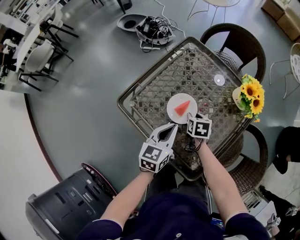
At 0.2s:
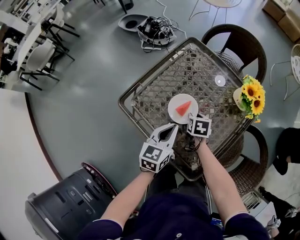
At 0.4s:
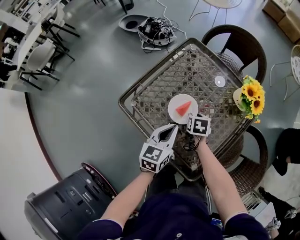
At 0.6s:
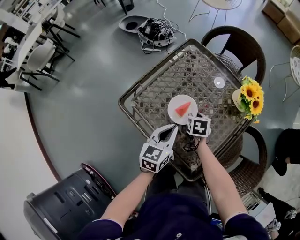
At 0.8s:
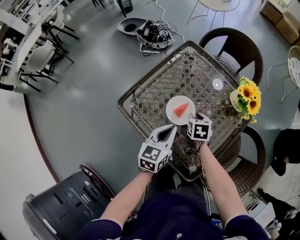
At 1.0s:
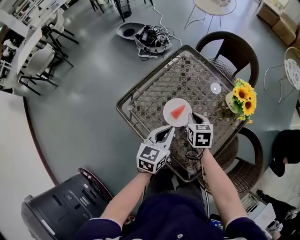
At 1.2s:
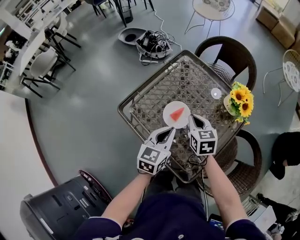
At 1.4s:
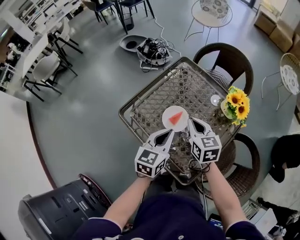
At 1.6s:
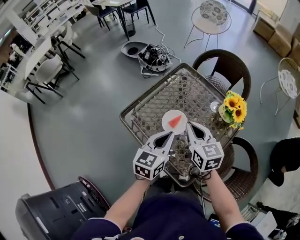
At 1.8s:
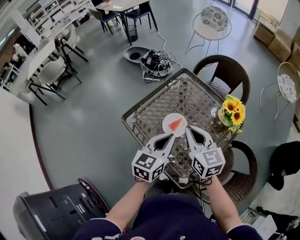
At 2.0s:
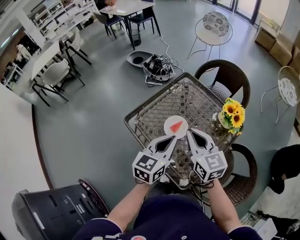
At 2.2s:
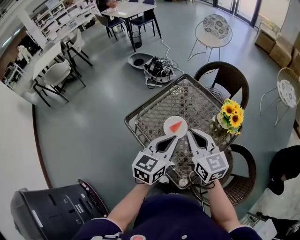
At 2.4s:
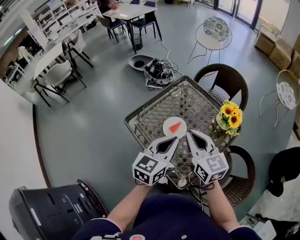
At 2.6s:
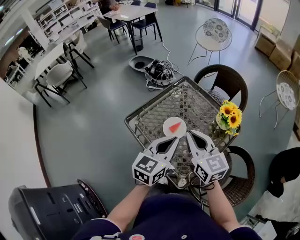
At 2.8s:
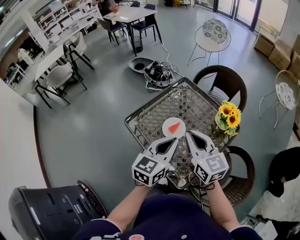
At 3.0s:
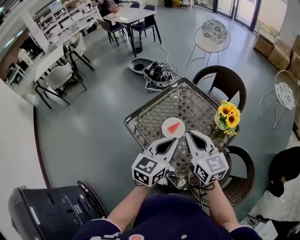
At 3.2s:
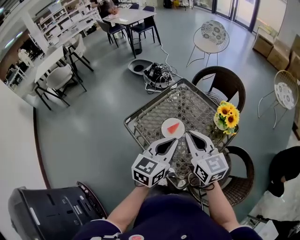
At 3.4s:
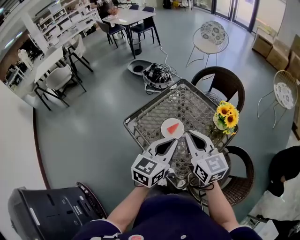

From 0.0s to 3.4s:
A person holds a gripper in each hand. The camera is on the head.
From 0.0s to 1.6s: The left gripper travels upward by roughly 10 cm, while the right gripper travels upward by approximately 25 cm, tilts its fingers some 40 degrees upward, and closes.
From 1.6s to 3.4s: The two grippers go some 10 cm upward and backward.

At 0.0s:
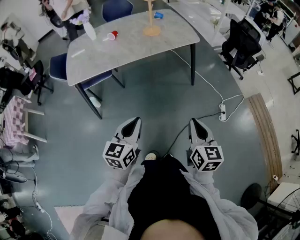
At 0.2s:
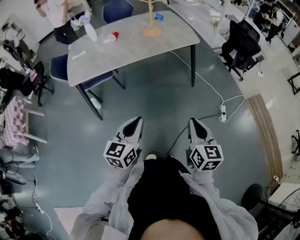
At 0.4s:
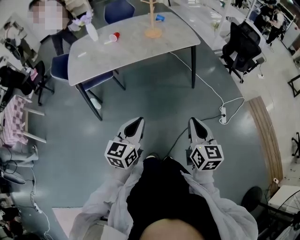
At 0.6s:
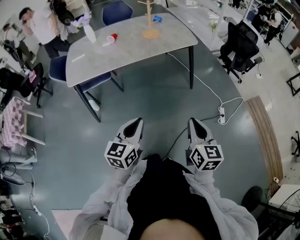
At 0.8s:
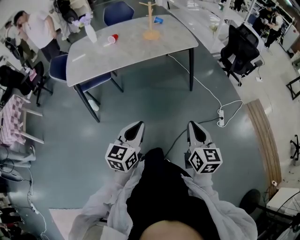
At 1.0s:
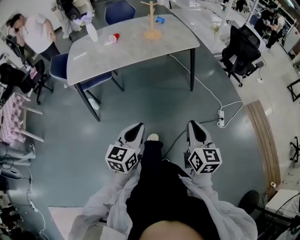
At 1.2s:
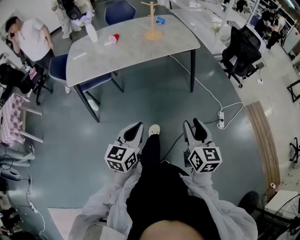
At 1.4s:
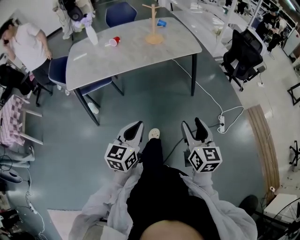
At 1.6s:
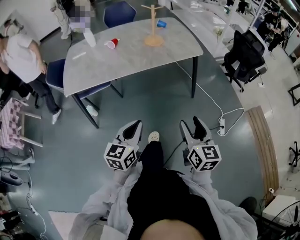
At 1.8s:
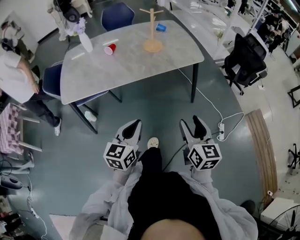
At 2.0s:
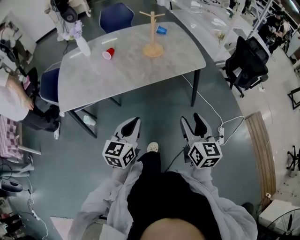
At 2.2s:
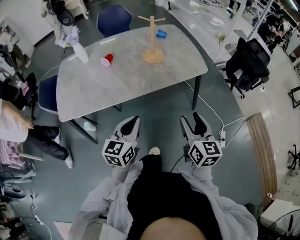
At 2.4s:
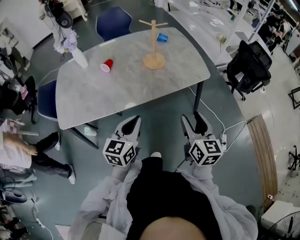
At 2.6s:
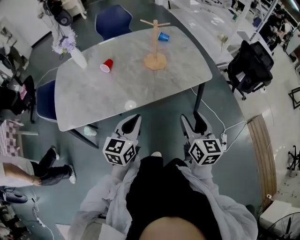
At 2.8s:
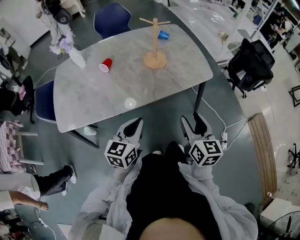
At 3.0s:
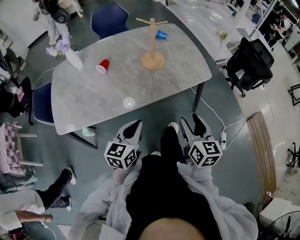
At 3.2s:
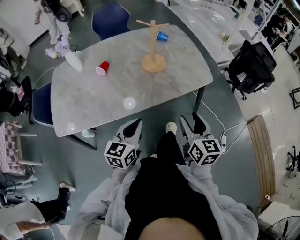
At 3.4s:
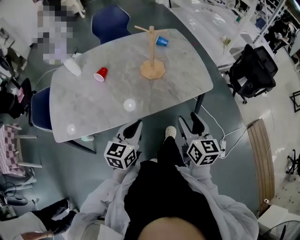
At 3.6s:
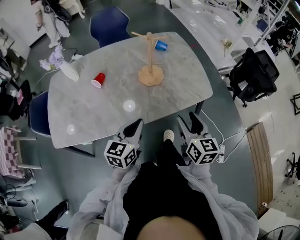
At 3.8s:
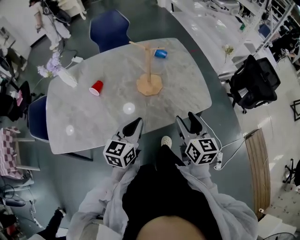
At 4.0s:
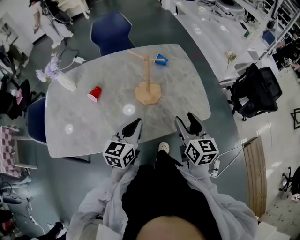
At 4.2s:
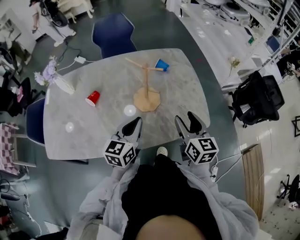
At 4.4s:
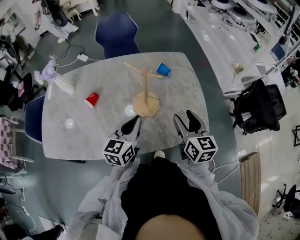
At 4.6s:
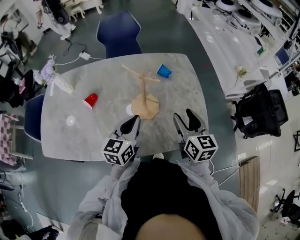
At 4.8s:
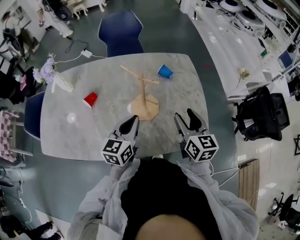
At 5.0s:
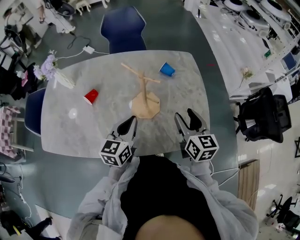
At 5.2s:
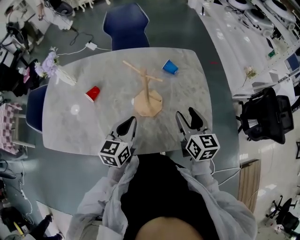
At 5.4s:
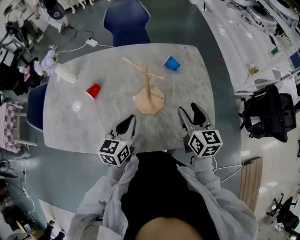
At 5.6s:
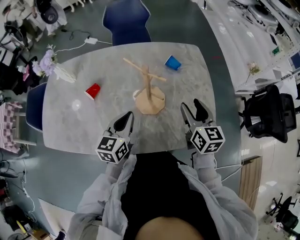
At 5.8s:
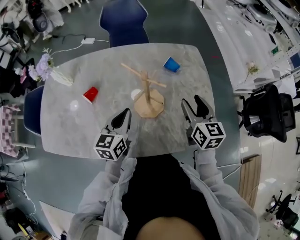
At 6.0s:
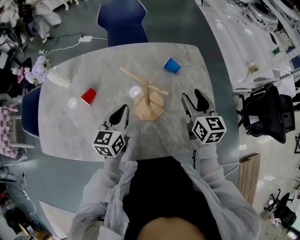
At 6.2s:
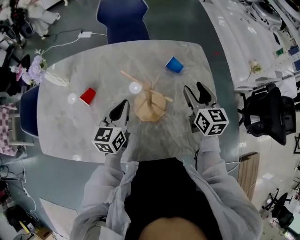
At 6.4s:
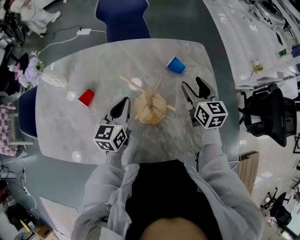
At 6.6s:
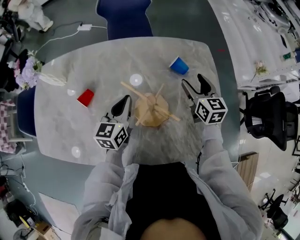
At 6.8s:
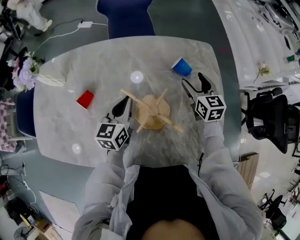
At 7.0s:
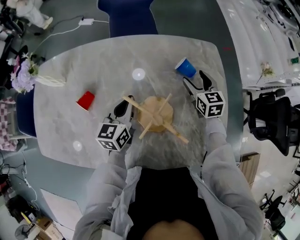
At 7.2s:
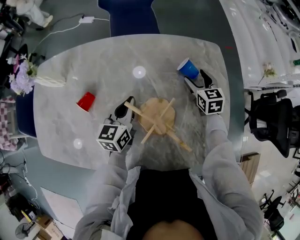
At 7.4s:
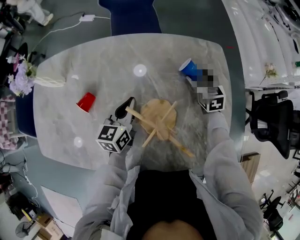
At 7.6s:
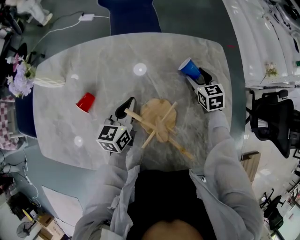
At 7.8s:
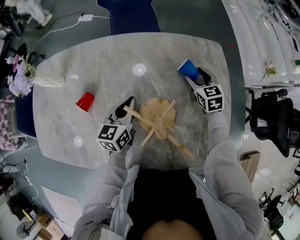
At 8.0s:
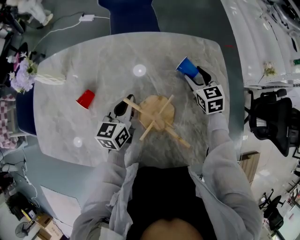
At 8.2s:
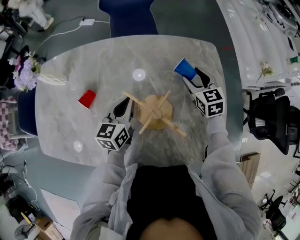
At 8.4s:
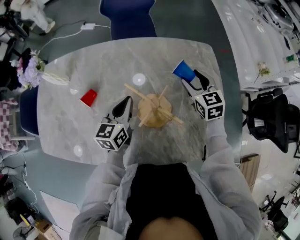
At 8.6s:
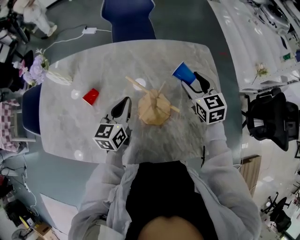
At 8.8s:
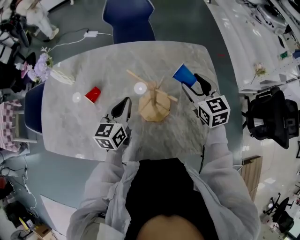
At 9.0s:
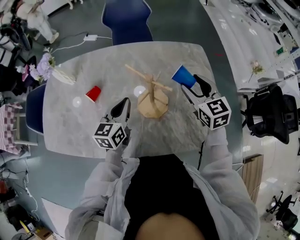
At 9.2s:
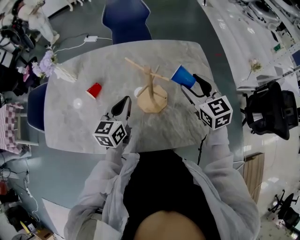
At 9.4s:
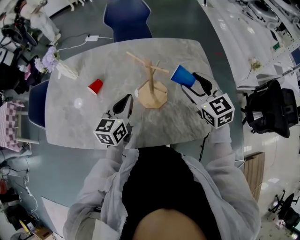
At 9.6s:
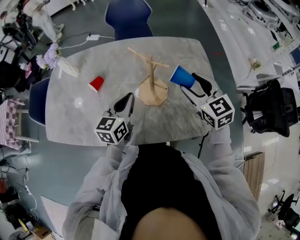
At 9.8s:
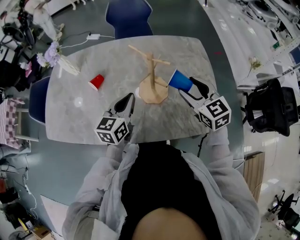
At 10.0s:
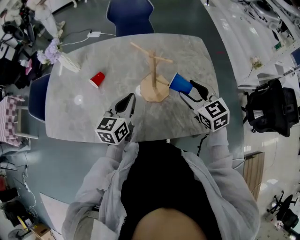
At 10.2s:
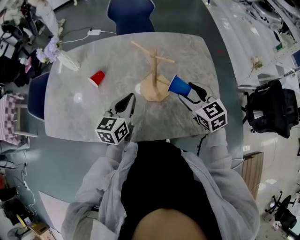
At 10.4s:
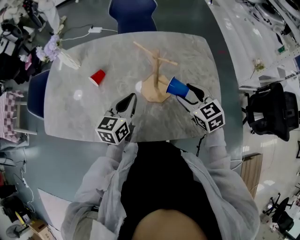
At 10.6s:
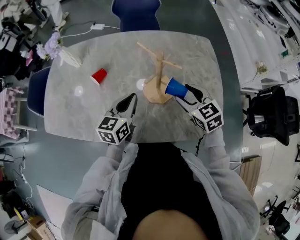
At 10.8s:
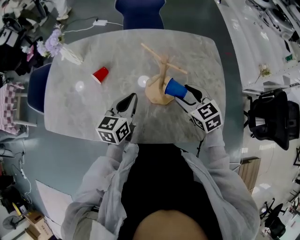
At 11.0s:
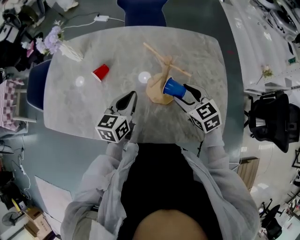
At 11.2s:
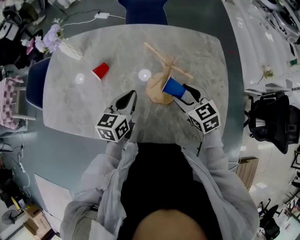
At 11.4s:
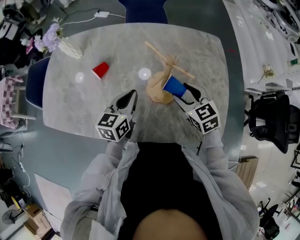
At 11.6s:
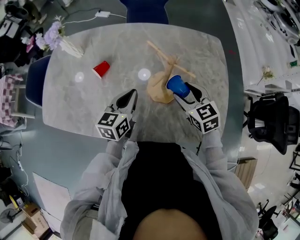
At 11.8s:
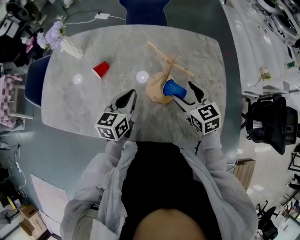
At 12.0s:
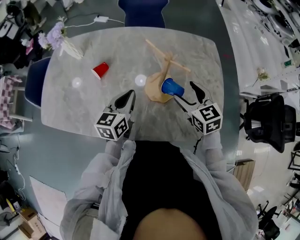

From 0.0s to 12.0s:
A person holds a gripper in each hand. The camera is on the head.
From 0.0s to 1.6s: The two grippers go approximately 10 cm forward. The right gripper opens its fingers.
From 1.6s to 3.0s: The two grippers go some 30 cm forward.
From 3.0s to 4.4s: The two grippers go about 35 cm forward.
From 4.4s to 6.0s: The left gripper goes roughly 15 cm forward, to the left and downward. Meanwhile the right gripper shifts about 15 cm forward.
From 6.0s to 7.6s: The left gripper moves forward and downward, approximately 15 cm, while the right gripper shifts about 25 cm forward and downward, and rotates some 30 degrees.
From 7.6s to 9.0s: The right gripper moves upward and backward, some 25 cm. Meanwhile the left gripper goes roughly 15 cm backward and upward.
From 9.0s to 10.4s: The right gripper travels backward and downward by approximately 10 cm. The left gripper travels backward by roughly 5 cm.

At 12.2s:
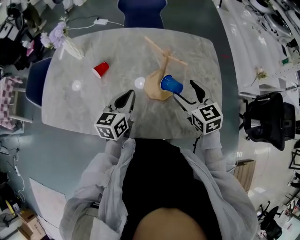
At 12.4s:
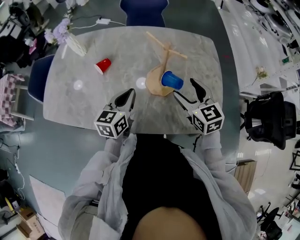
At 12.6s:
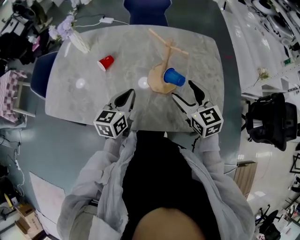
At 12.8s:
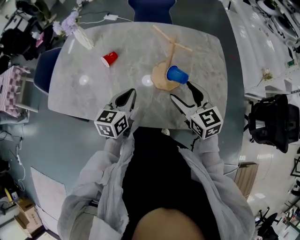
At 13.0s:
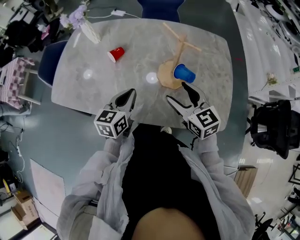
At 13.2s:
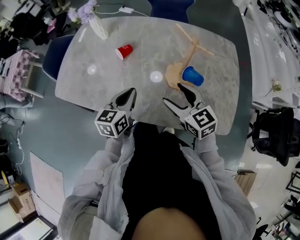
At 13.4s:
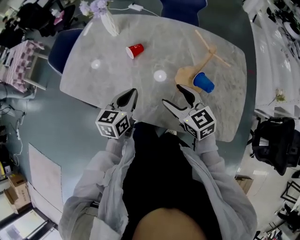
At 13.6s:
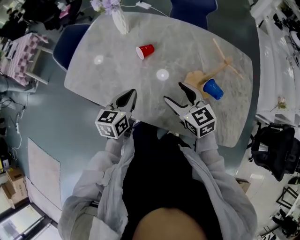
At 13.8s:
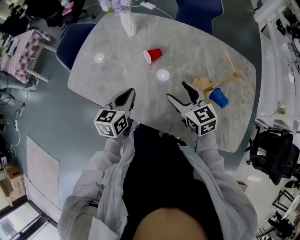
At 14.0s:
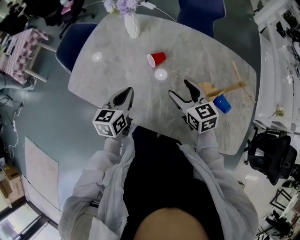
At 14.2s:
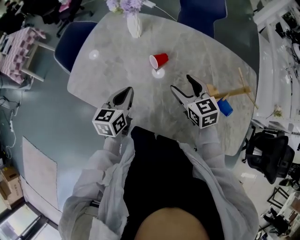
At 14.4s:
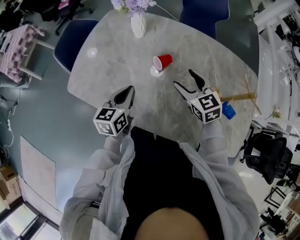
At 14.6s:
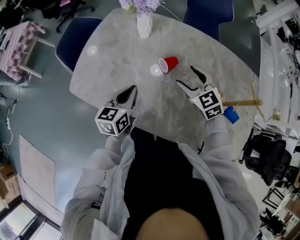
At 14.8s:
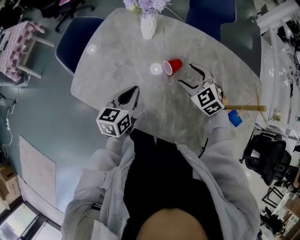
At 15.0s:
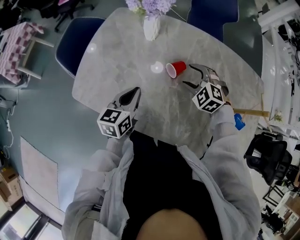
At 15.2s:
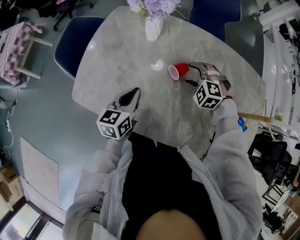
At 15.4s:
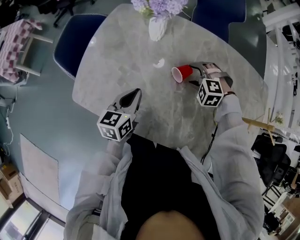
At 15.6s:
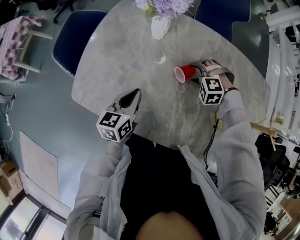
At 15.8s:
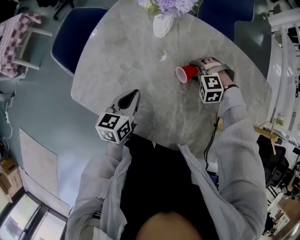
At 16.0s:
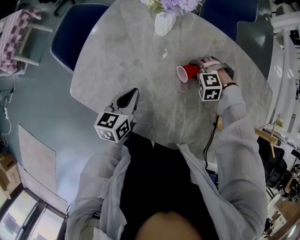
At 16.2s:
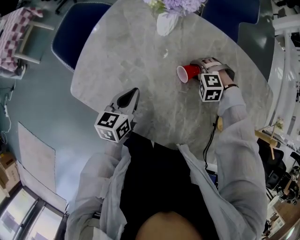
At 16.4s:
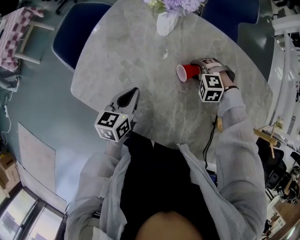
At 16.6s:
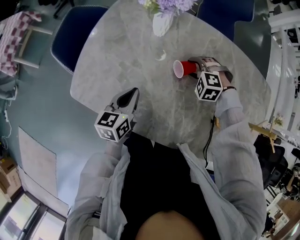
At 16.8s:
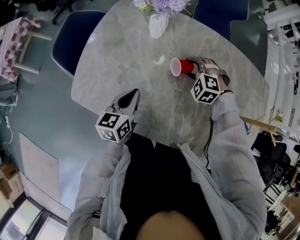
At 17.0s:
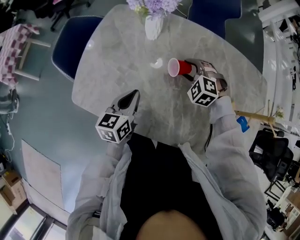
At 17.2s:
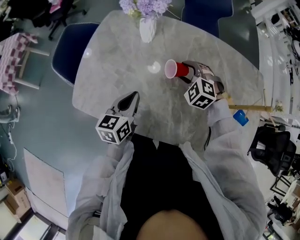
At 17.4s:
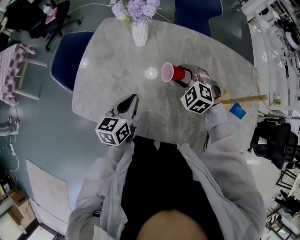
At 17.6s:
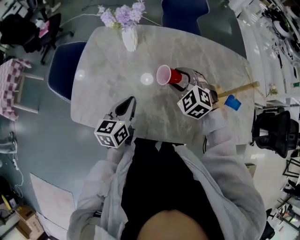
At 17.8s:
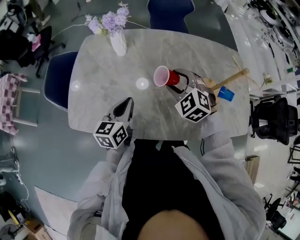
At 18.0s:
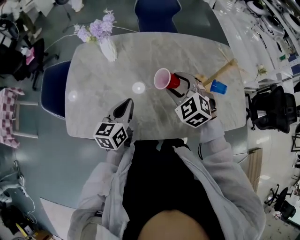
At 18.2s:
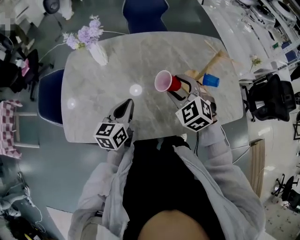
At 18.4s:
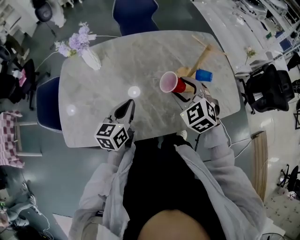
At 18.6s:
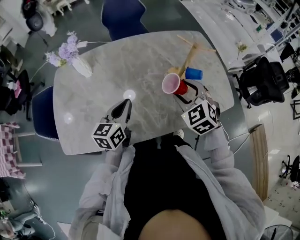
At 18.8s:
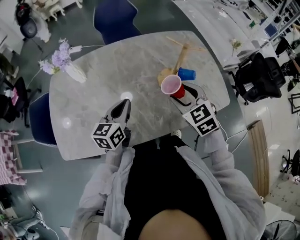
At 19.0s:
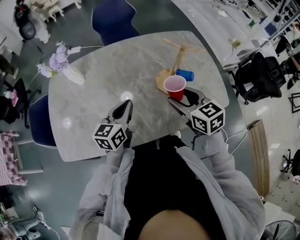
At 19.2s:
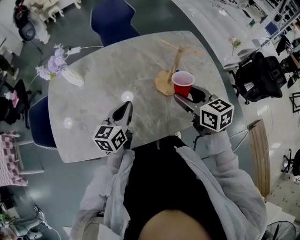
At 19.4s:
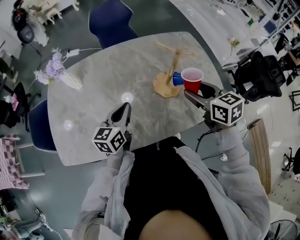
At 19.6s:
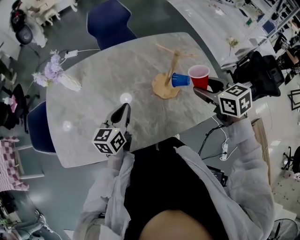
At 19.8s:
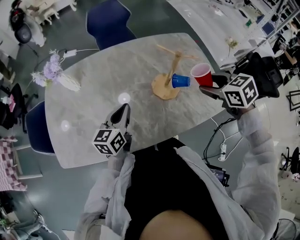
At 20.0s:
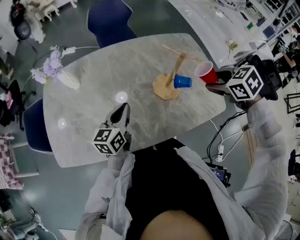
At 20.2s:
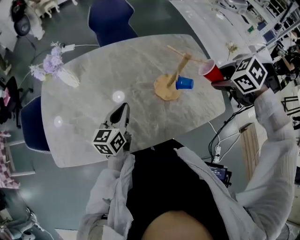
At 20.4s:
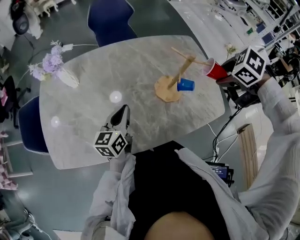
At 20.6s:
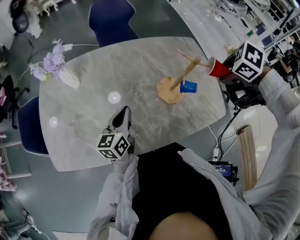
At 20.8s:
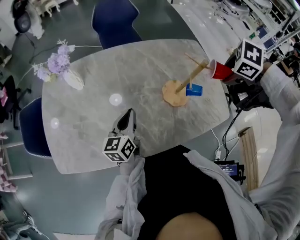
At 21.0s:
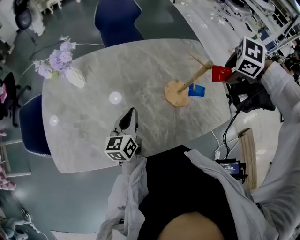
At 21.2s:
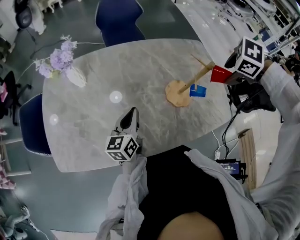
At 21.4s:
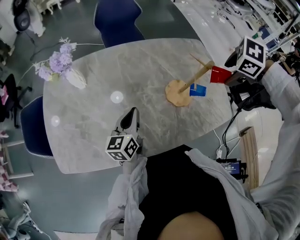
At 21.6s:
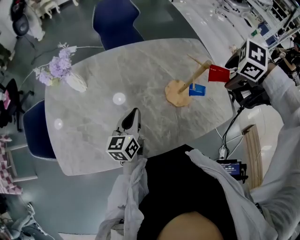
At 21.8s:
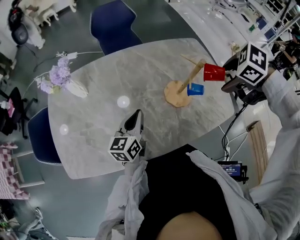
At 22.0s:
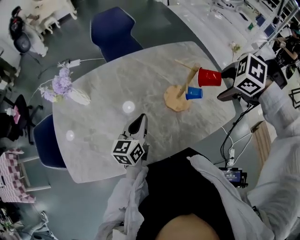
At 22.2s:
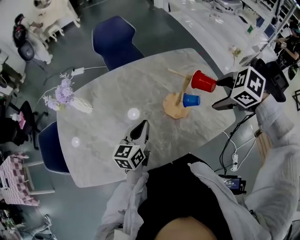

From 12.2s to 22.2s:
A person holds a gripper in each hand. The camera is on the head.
From 12.2s to 13.6s: The two grippers go some 20 cm to the left. The right gripper turns by about 20 degrees.
From 13.6s to 15.0s: The grippers both shift forward and to the left by some 20 cm. The right gripper rolls counterclockwise, seen from behind, by some 50 degrees.
From 15.0s to 16.4s: The right gripper moves downward, some 10 cm, and swivels approximately 30 degrees. The left gripper ends up roughly 5 cm from where it was.
From 16.4s to 18.0s: The right gripper shifts roughly 25 cm upward and backward, and points its fingers approximately 30 degrees further upward. Meanwhile the left gripper shifts about 15 cm to the right, upward and backward, and swivels about 20 degrees.
From 18.0s to 19.4s: The left gripper goes approximately 15 cm to the right. Meanwhile the right gripper goes some 25 cm to the right, and rotates around the line of its fingers by about 60 degrees, clockwise from behind.
From 19.4s to 20.8s: The left gripper changes place by about 5 cm, while the right gripper moves approximately 10 cm, and points its fingers some 60 degrees further downward.
From 20.8s to 22.2s: The left gripper ends up roughly 10 cm from where it was. The right gripper changes its angle by roughly 30 degrees.
